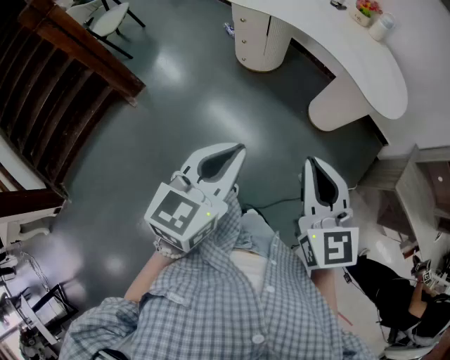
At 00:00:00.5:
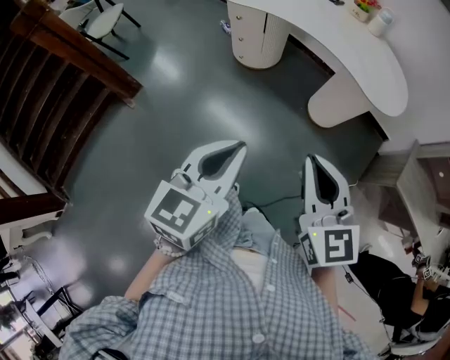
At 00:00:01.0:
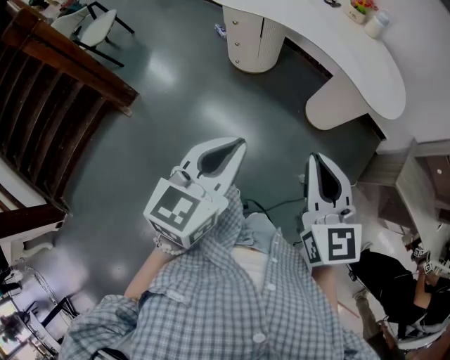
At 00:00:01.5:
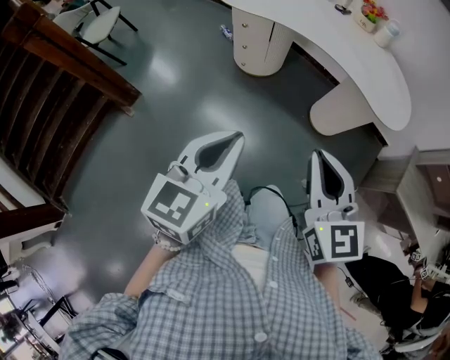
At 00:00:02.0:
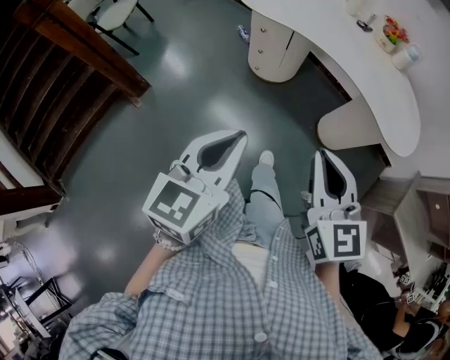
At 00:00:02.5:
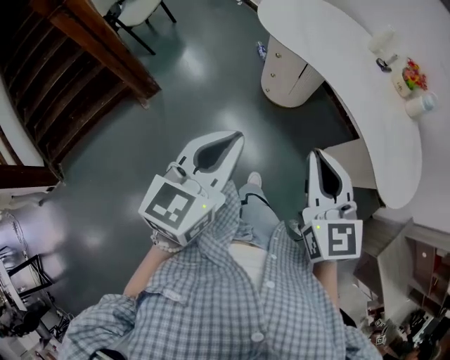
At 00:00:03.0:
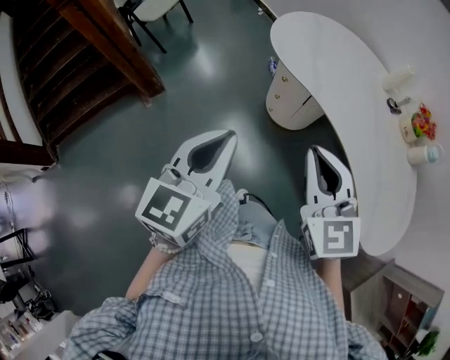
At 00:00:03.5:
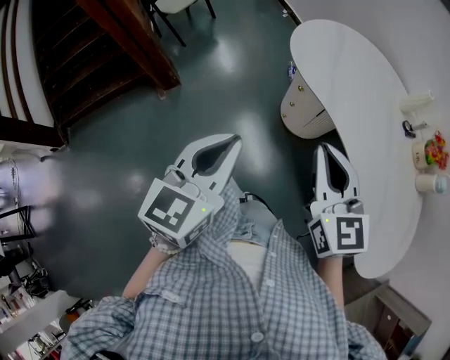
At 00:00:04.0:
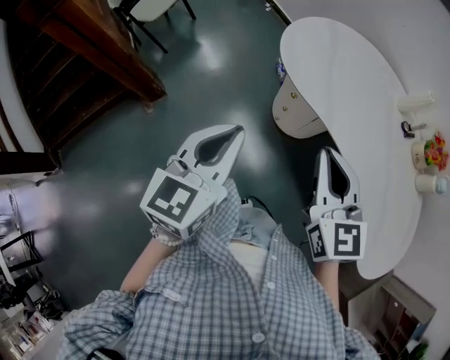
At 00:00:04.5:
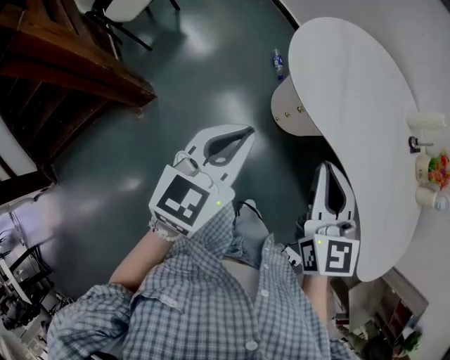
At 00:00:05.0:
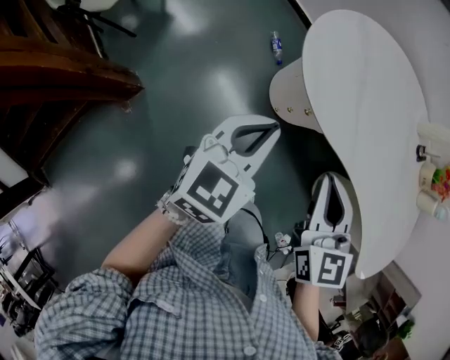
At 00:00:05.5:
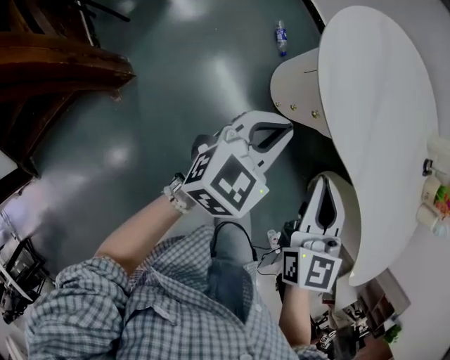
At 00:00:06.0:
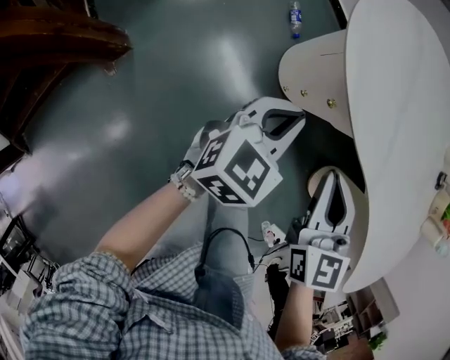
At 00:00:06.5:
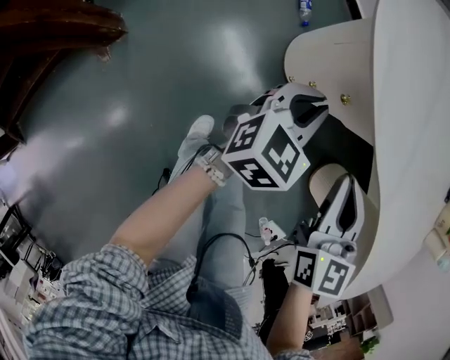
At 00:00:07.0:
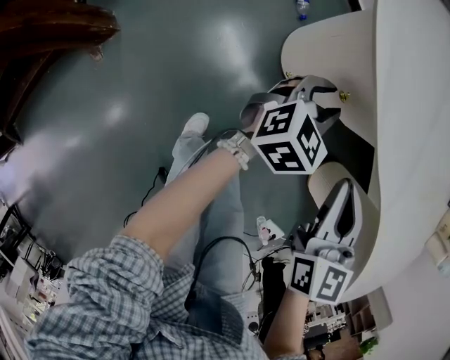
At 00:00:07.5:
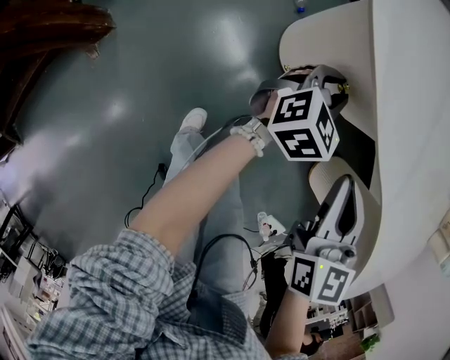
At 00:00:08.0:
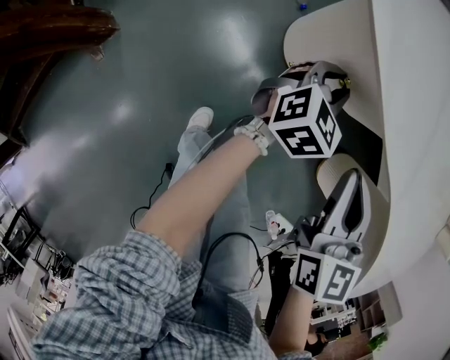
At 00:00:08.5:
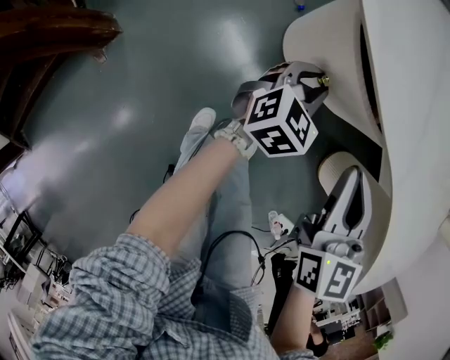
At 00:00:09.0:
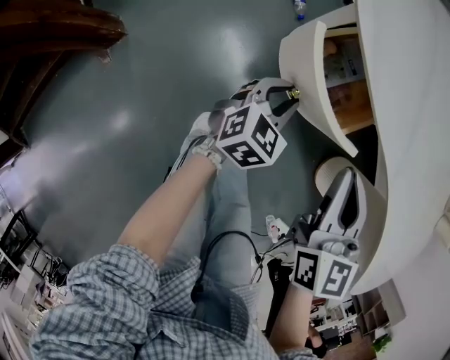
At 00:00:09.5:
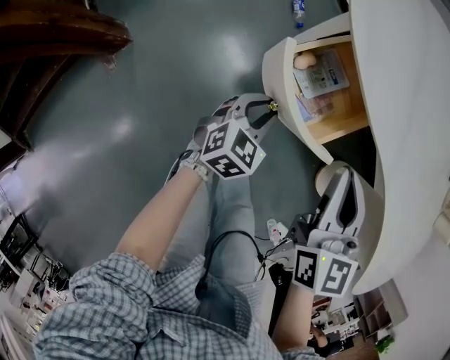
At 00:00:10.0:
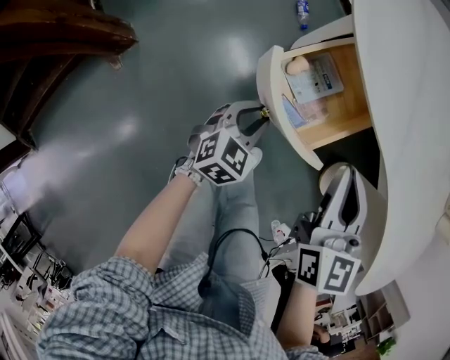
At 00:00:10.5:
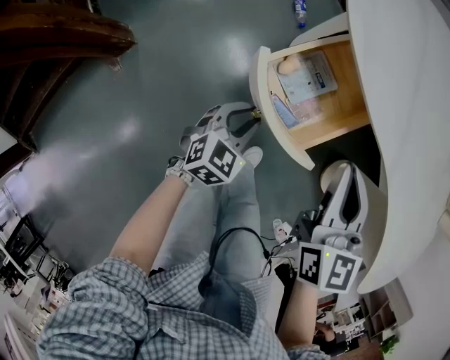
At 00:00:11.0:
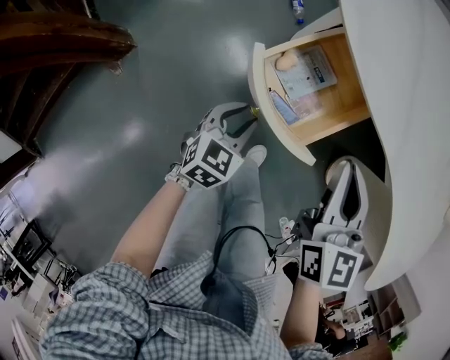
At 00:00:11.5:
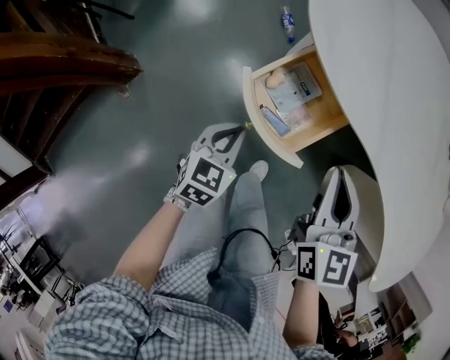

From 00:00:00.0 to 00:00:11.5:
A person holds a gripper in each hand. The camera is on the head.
From 00:00:00.0 to 00:00:02.0: The grippers both shift forward and to the left by about 15 cm.
From 00:00:02.0 to 00:00:04.0: The right gripper shifts by some 40 cm, while the left gripper moves about 35 cm.
From 00:00:04.0 to 00:00:06.0: The right gripper heads downward, forward and to the left, covering some 30 cm, and turns by some 20 degrees. The left gripper is displaced downward and forward by about 35 cm, and changes its angle by approximately 30 degrees.
From 00:00:06.0 to 00:00:07.5: The right gripper is displaced downward and to the right by approximately 10 cm; the left gripper heads downward, forward and to the right, covering approximately 20 cm, and opens its fingers.
From 00:00:07.5 to 00:00:09.5: The left gripper goes roughly 20 cm backward and to the left. Meanwhile the right gripper goes some 5 cm upward.
From 00:00:09.5 to 00:00:11.5: The left gripper heads upward, covering approximately 5 cm, and closes.

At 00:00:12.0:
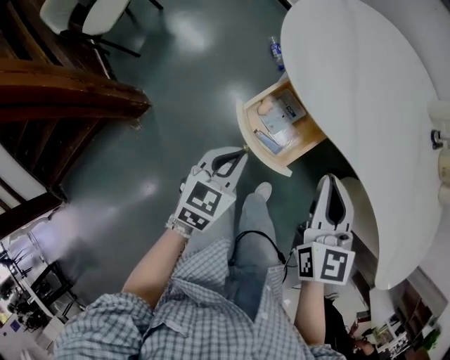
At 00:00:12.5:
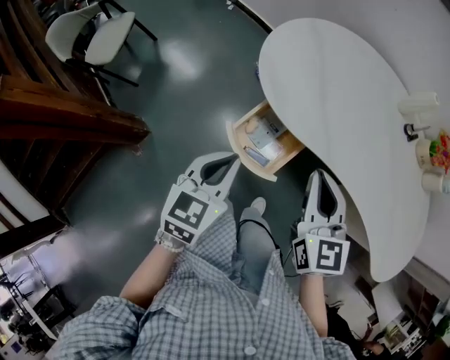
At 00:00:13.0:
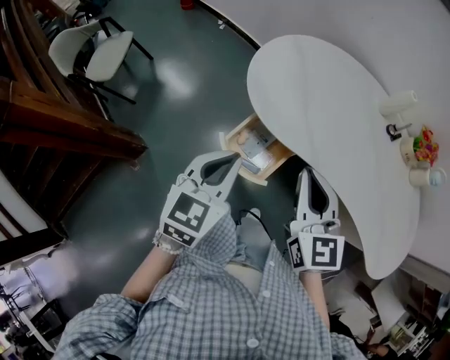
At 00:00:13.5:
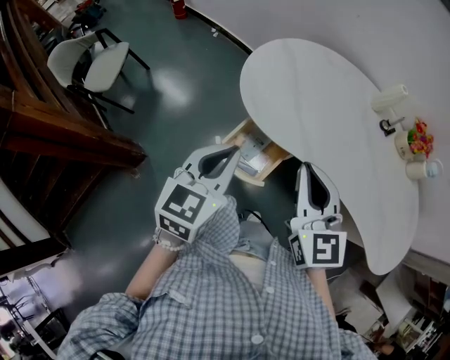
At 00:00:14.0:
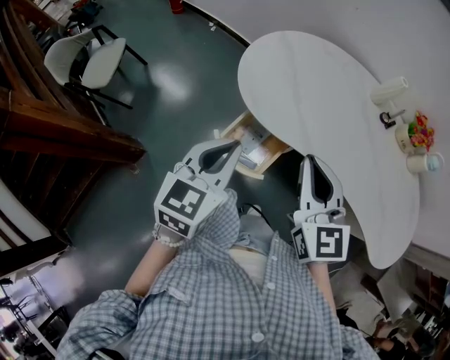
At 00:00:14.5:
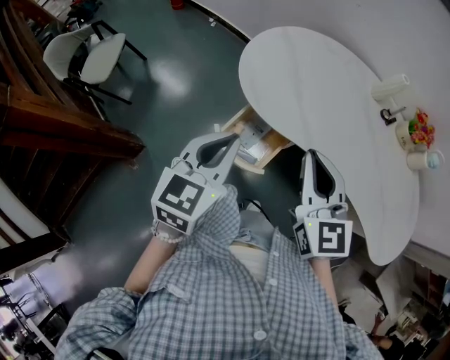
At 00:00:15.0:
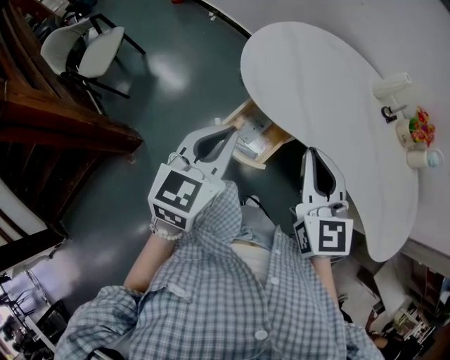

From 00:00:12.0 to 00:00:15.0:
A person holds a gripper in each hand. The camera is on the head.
From 00:00:12.0 to 00:00:13.5: The right gripper shifts some 15 cm upward, while the left gripper moves upward, about 25 cm.
From 00:00:13.5 to 00:00:15.0: There are only small adjustments of the grippers.

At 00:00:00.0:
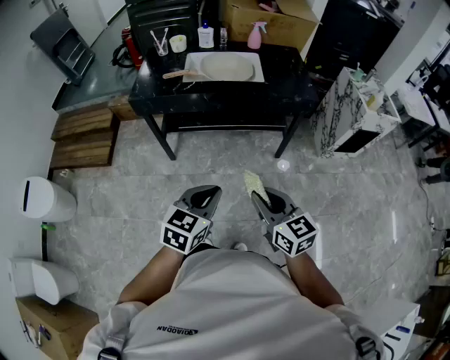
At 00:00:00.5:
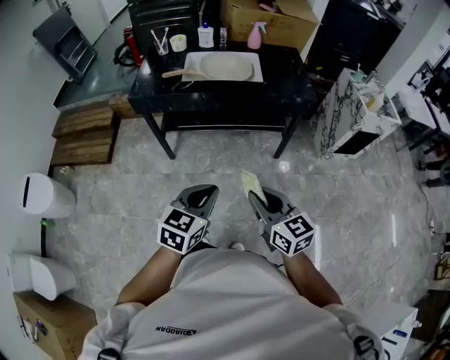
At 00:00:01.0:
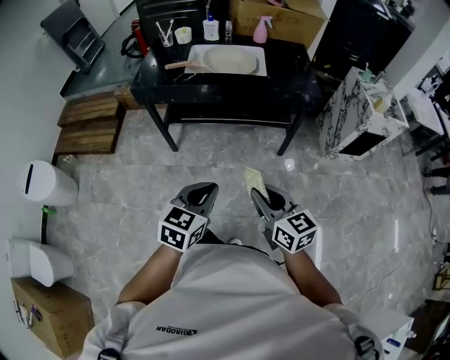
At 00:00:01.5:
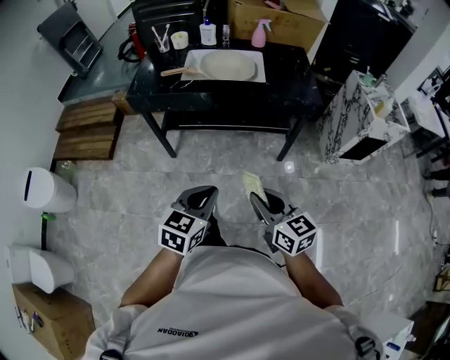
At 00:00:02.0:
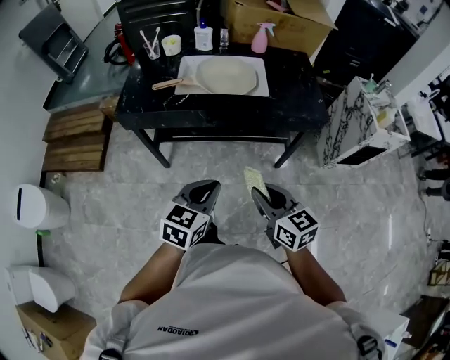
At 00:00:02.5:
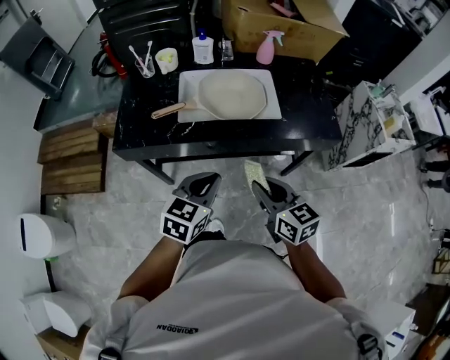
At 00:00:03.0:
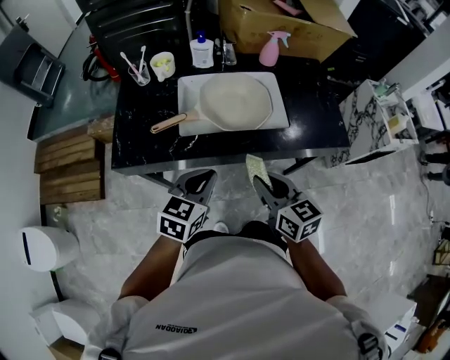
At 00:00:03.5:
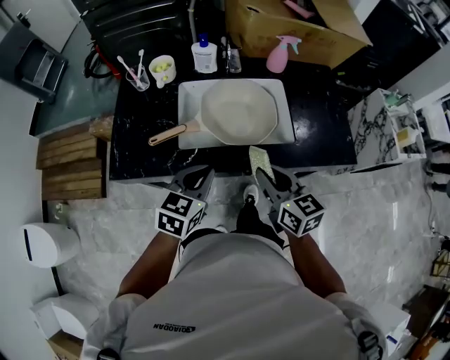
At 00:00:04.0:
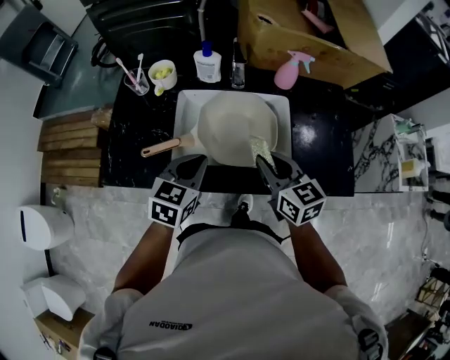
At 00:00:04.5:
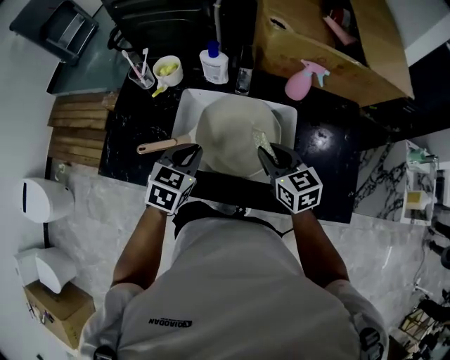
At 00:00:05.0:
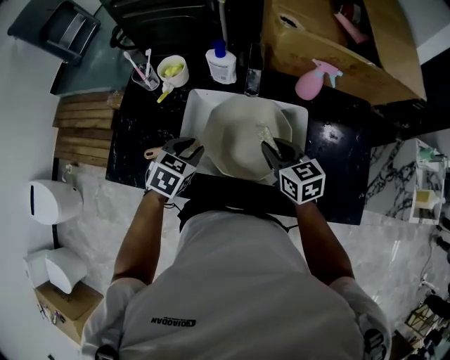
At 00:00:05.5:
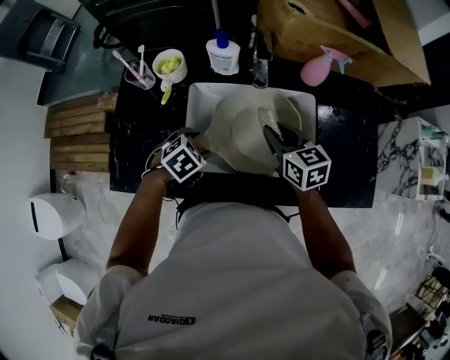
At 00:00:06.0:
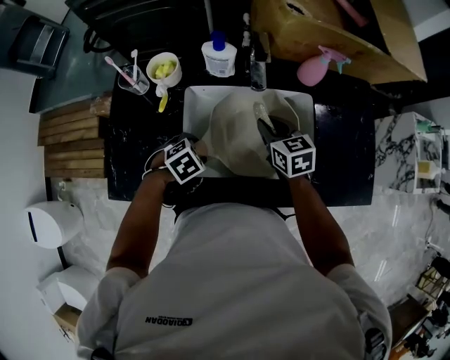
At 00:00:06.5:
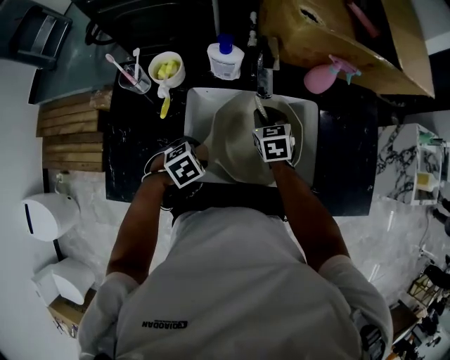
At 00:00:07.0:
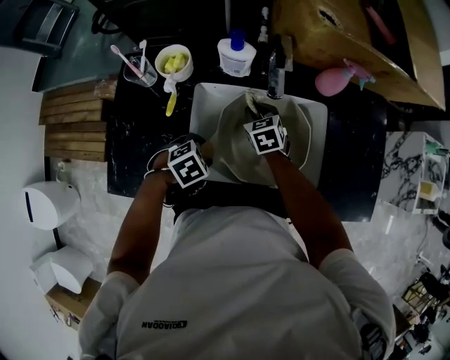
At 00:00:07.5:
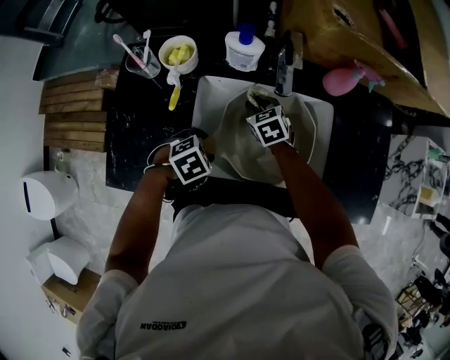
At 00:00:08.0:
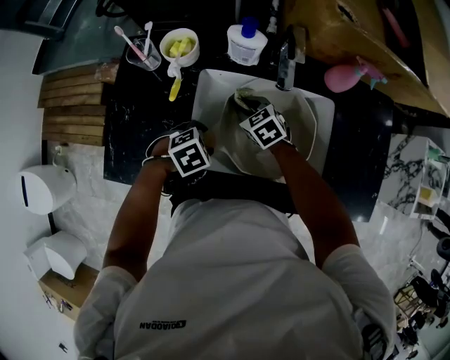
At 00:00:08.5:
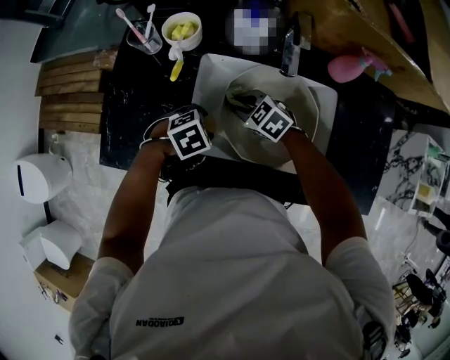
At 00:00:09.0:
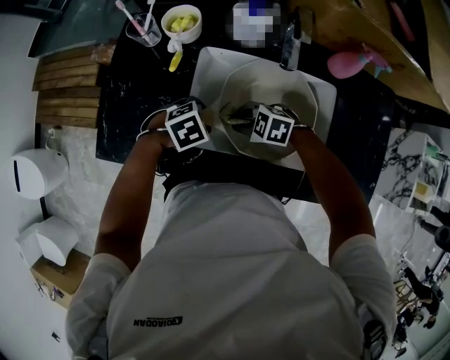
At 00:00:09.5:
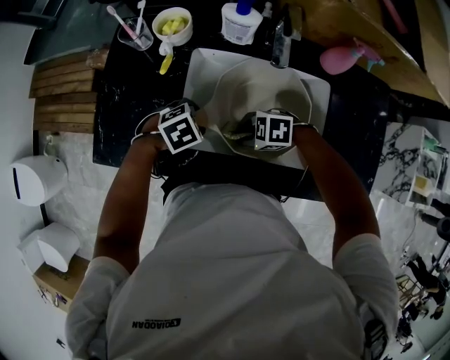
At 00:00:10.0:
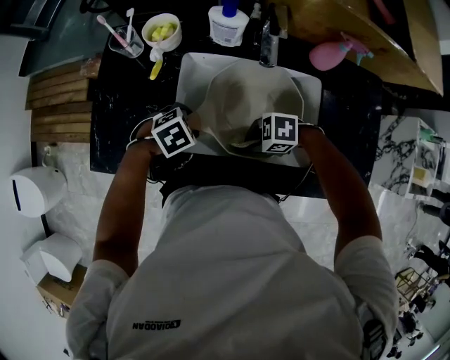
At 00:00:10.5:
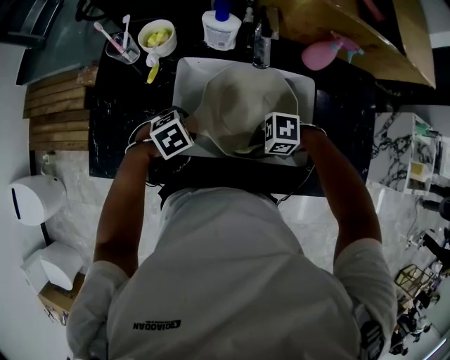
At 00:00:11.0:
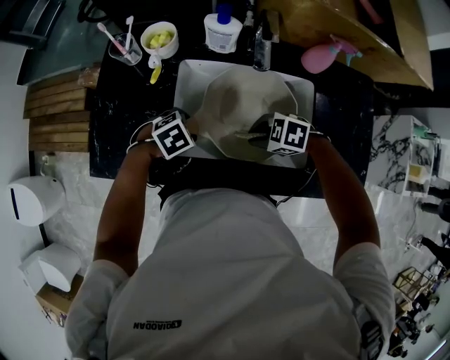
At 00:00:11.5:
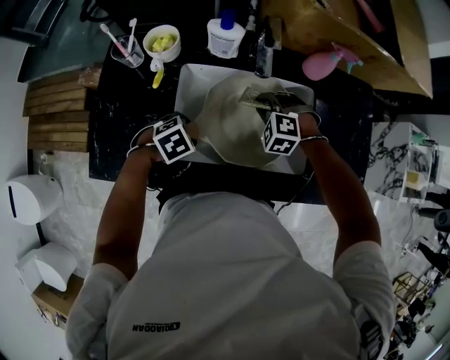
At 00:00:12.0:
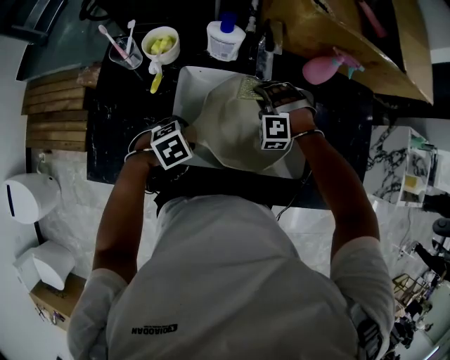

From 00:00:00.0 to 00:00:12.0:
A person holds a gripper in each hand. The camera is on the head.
From 00:00:00.0 to 00:00:02.0: Both grippers move forward, about 20 cm.
From 00:00:02.0 to 00:00:04.0: The two grippers travel together, forward, roughly 50 cm.
From 00:00:04.0 to 00:00:06.0: The right gripper moves approximately 20 cm. Meanwhile the left gripper heads downward, covering approximately 20 cm, points its fingers some 40 degrees further downward, and opens up.
From 00:00:06.0 to 00:00:08.0: The right gripper changes place by some 15 cm, and changes its angle by some 30 degrees.
From 00:00:08.0 to 00:00:10.0: The right gripper changes place by roughly 20 cm, and swivels roughly 60 degrees.
From 00:00:10.0 to 00:00:12.0: The right gripper changes place by roughly 20 cm, and rotates some 80 degrees.
